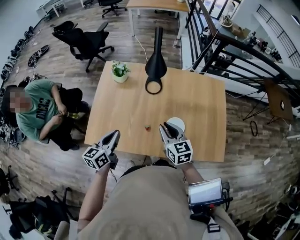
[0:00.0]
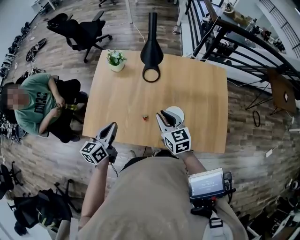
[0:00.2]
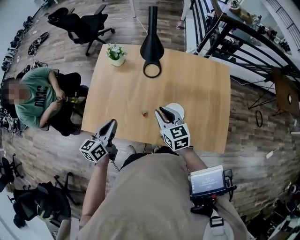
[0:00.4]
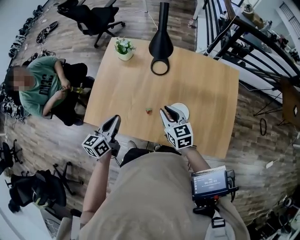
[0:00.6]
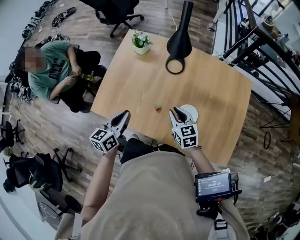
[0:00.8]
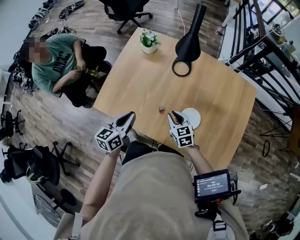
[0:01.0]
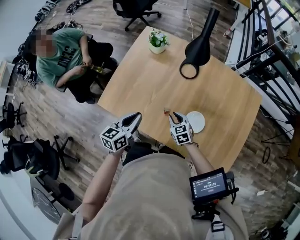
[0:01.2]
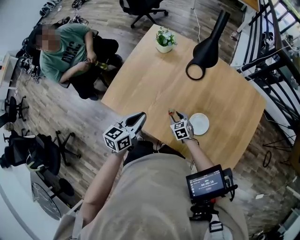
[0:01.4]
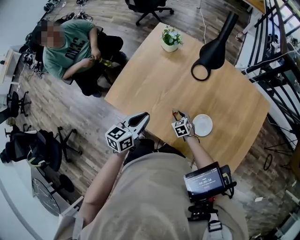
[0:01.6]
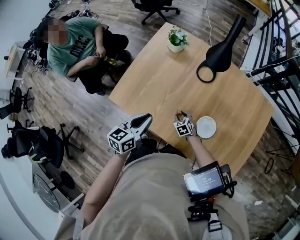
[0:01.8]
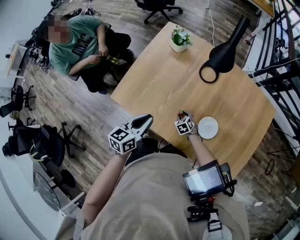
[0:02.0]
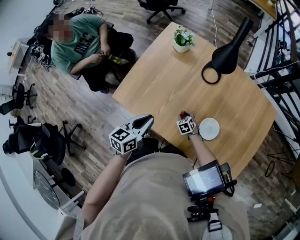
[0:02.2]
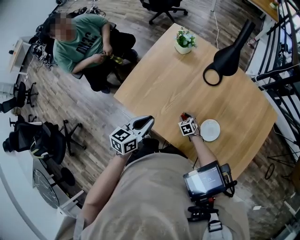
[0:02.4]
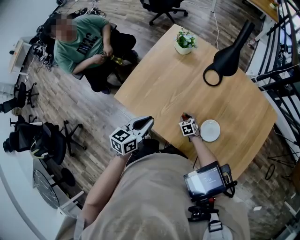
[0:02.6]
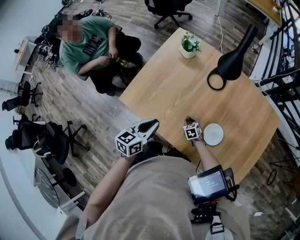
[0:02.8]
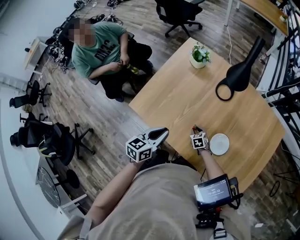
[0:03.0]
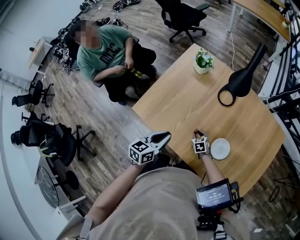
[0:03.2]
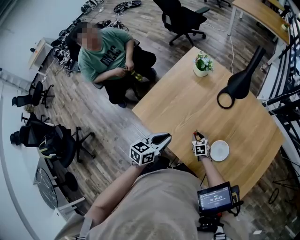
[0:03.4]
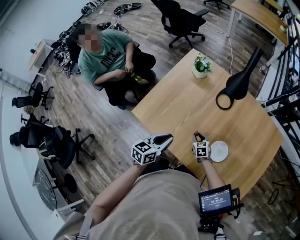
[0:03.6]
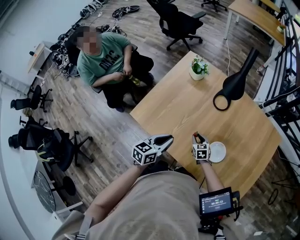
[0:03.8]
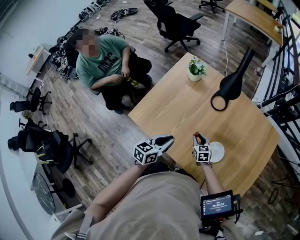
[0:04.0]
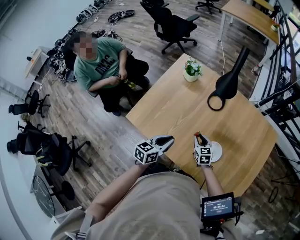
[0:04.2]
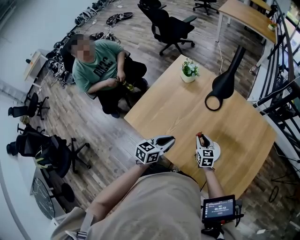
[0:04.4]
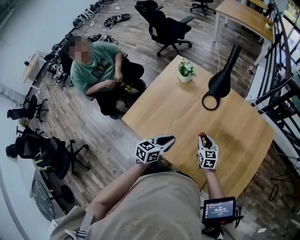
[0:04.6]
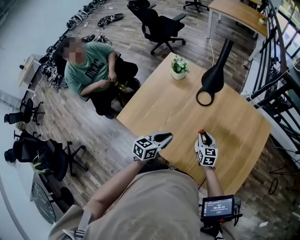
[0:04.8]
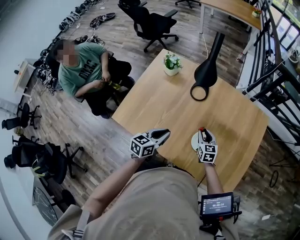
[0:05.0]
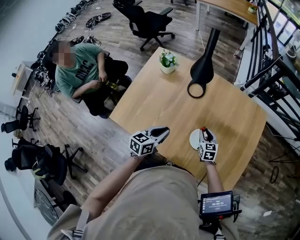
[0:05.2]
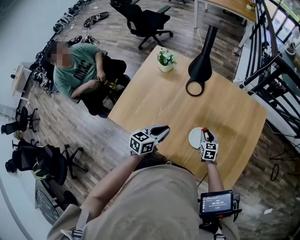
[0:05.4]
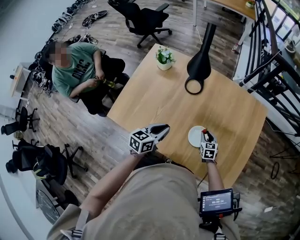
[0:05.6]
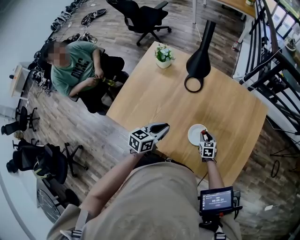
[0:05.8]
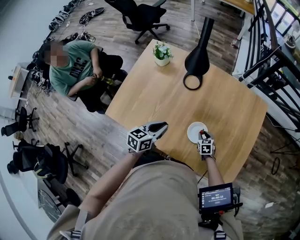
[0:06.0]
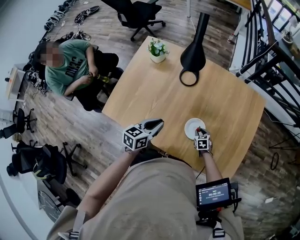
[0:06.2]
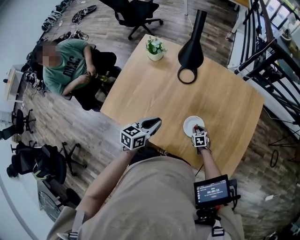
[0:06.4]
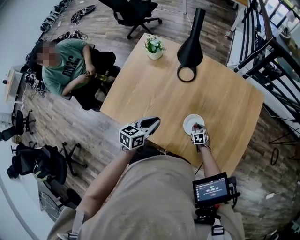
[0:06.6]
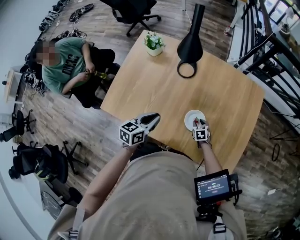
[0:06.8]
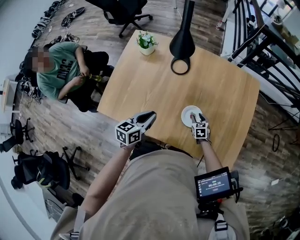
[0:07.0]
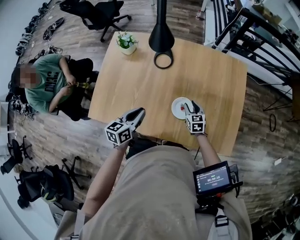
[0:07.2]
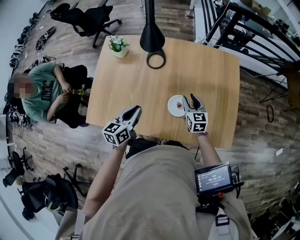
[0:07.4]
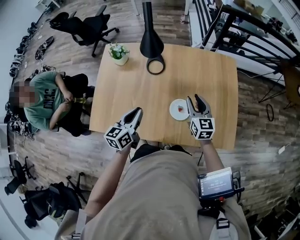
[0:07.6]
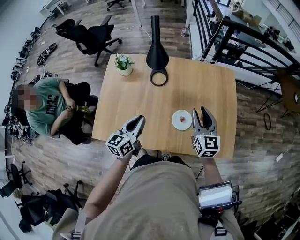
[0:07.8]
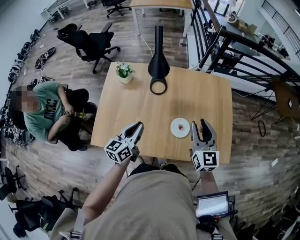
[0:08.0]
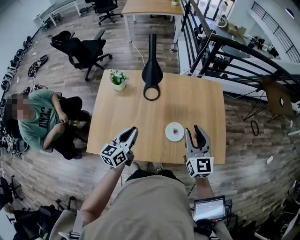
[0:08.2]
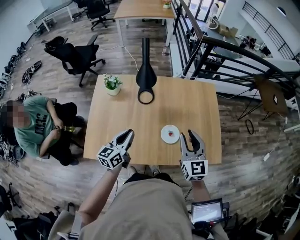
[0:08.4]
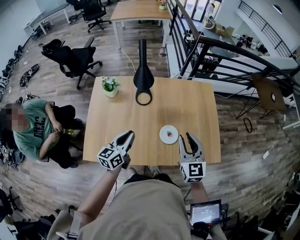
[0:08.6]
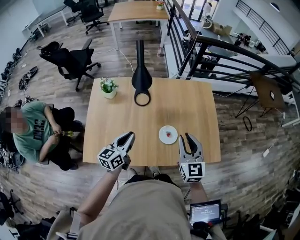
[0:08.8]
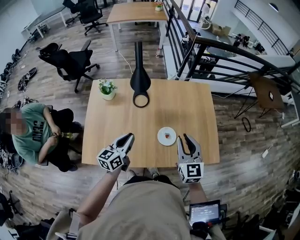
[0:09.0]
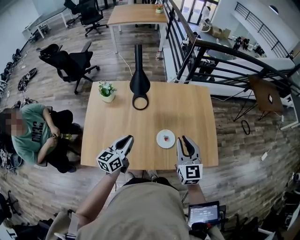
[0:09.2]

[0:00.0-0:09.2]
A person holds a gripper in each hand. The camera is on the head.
0.0 to 1.6 s: The right gripper moves downward, approximately 35 cm, and tilts its fingers about 30 degrees downward. The left gripper moves downward, approximately 5 cm.
1.6 to 3.0 s: The grippers make only small movements.
3.0 to 4.6 s: The left gripper travels to the right by about 10 cm, while the right gripper moves upward and to the right, roughly 20 cm, and turns by approximately 30 degrees.
4.6 to 6.2 s: The right gripper heads downward and to the right, covering some 25 cm, and turns by about 30 degrees. Meanwhile the left gripper ends up roughly 5 cm from where it was.
6.2 to 7.6 s: The right gripper goes approximately 30 cm upward, and angles its fingers upward, by approximately 40 degrees.
7.6 to 9.2 s: The right gripper travels upward and backward by some 20 cm, while the left gripper changes place by about 5 cm.

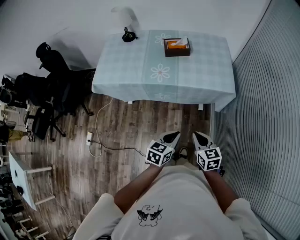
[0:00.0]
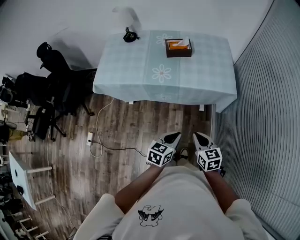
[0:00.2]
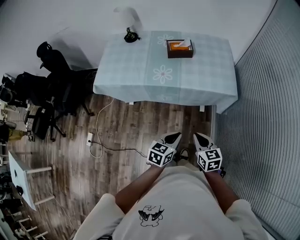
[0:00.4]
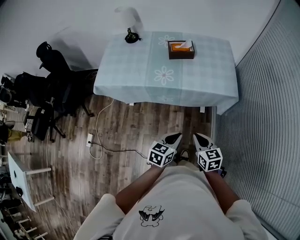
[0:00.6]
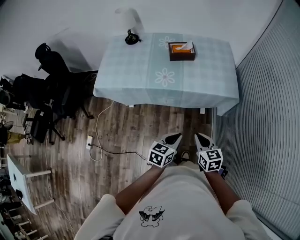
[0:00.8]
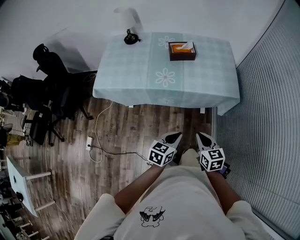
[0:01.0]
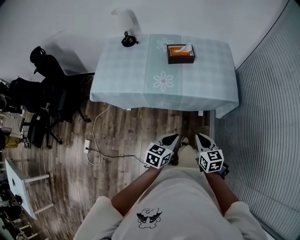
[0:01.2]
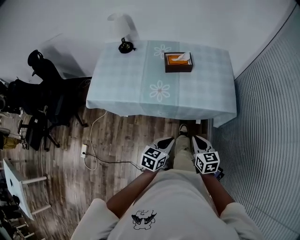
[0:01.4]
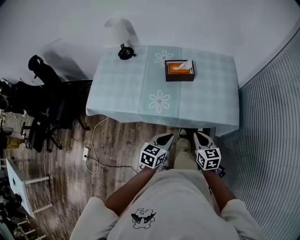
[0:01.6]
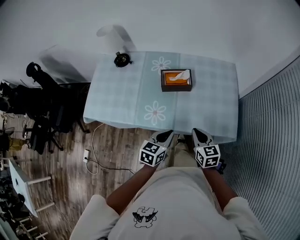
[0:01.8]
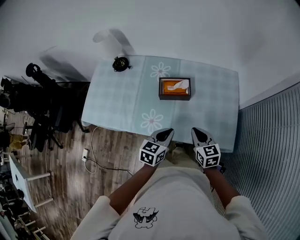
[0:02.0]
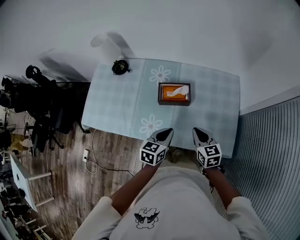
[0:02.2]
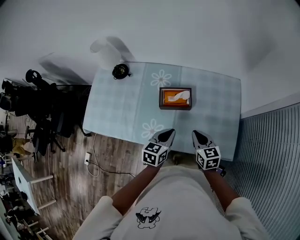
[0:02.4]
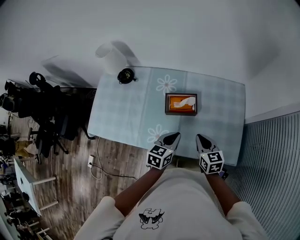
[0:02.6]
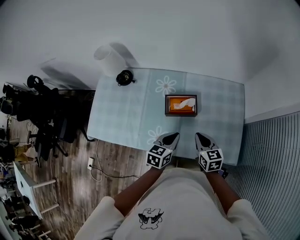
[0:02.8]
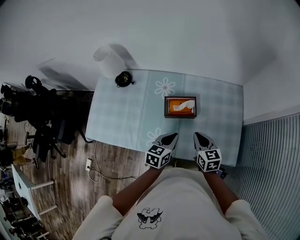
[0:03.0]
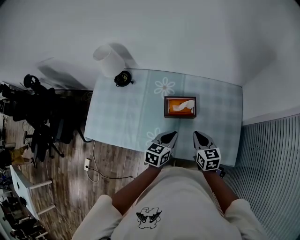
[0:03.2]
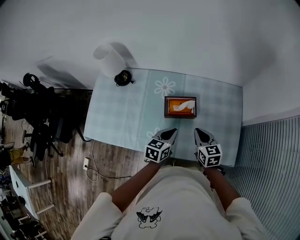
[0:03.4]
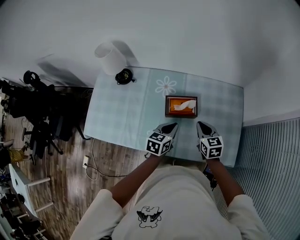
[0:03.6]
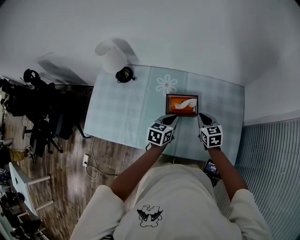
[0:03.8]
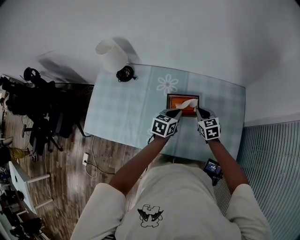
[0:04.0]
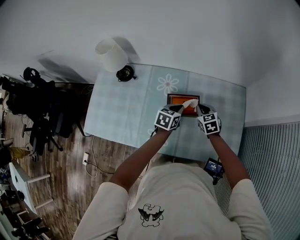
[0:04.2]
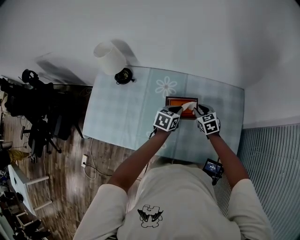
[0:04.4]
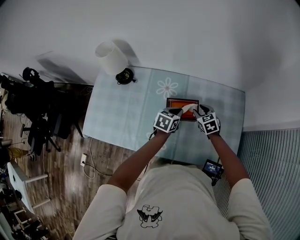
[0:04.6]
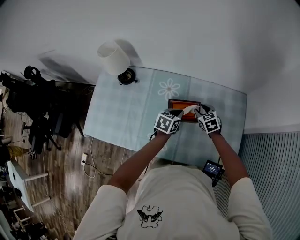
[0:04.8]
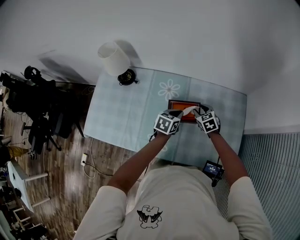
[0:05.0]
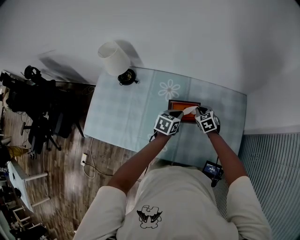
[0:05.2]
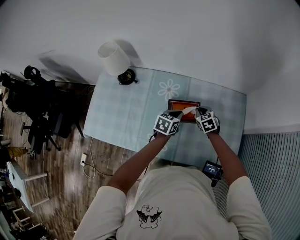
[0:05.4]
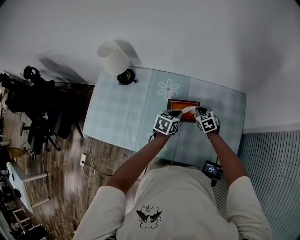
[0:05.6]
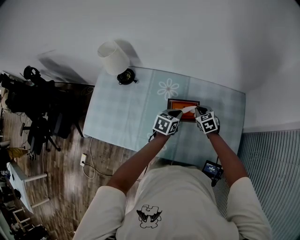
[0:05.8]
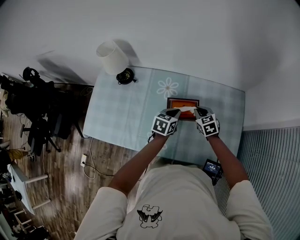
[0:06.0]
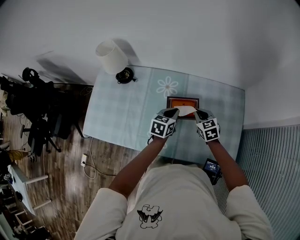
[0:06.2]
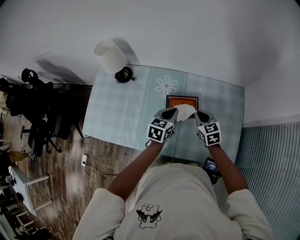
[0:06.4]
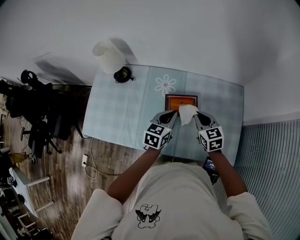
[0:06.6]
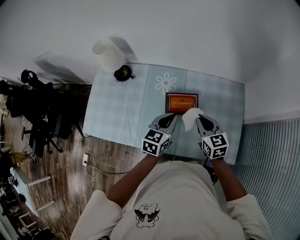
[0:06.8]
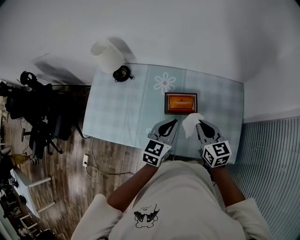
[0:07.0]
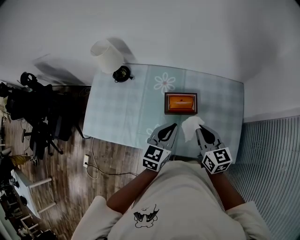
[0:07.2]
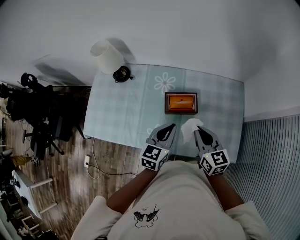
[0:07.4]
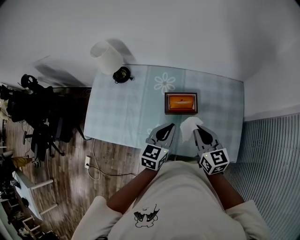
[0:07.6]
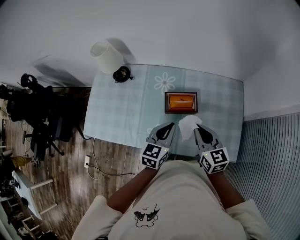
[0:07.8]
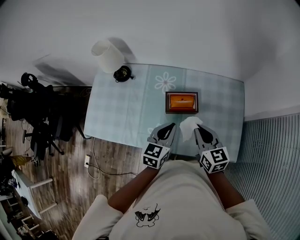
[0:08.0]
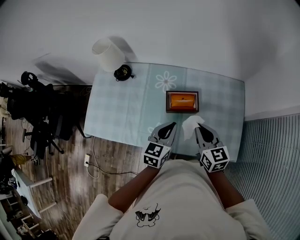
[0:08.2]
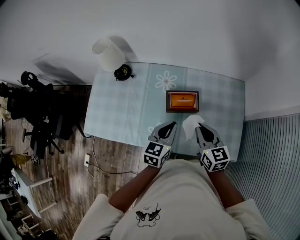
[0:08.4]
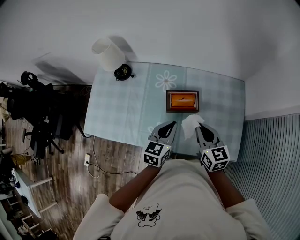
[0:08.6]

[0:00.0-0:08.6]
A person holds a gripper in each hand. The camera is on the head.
0.0 to 1.4 s: The left gripper is displaced forward and to the left by approximately 10 cm, while the right gripper heads forward, covering roughly 10 cm.
1.4 to 2.8 s: Both grippers move forward, approximately 35 cm.
2.8 to 4.4 s: The left gripper shifts some 15 cm forward; the right gripper goes approximately 20 cm forward and downward, changes its angle by roughly 20 degrees, and opens its fingers.
4.4 to 5.8 s: The right gripper closes its fingers.
5.8 to 7.2 s: The grippers both shift upward and backward by roughly 20 cm. The right gripper rotates roughly 30 degrees, while the left gripper rotates some 20 degrees.
7.2 to 8.6 s: There are only small adjustments of the grippers.

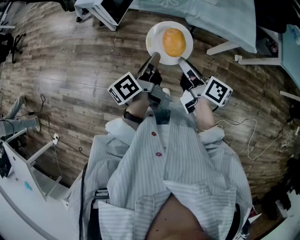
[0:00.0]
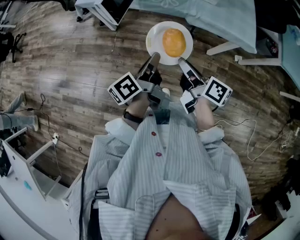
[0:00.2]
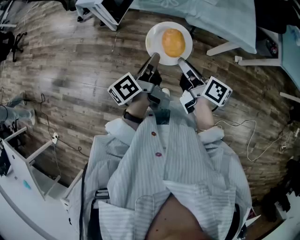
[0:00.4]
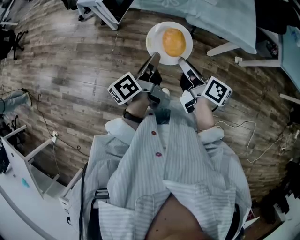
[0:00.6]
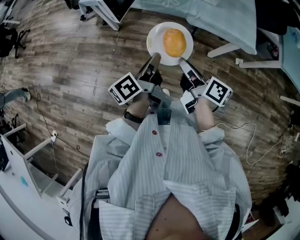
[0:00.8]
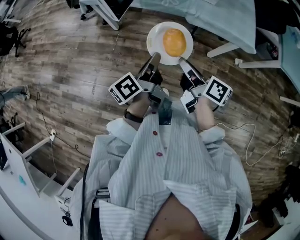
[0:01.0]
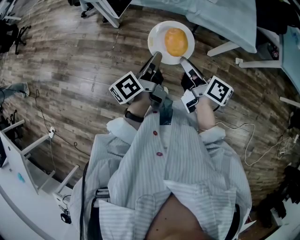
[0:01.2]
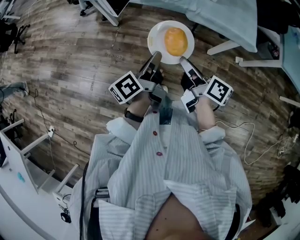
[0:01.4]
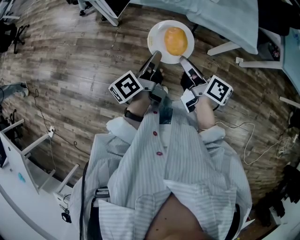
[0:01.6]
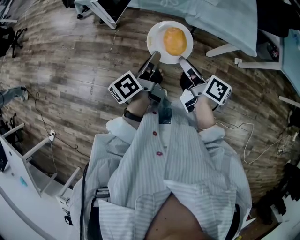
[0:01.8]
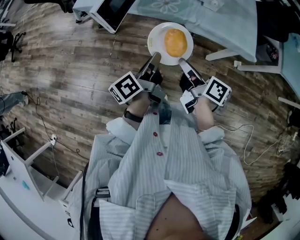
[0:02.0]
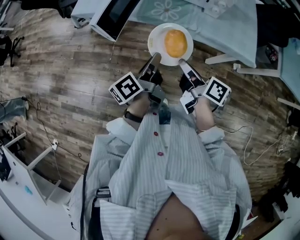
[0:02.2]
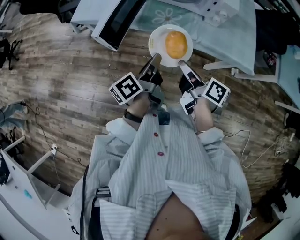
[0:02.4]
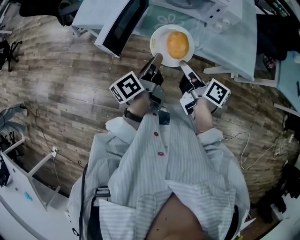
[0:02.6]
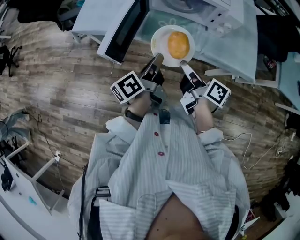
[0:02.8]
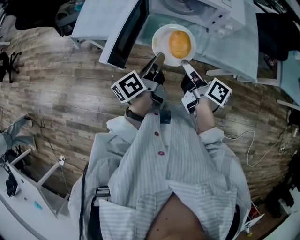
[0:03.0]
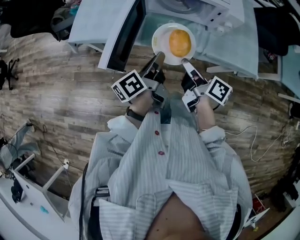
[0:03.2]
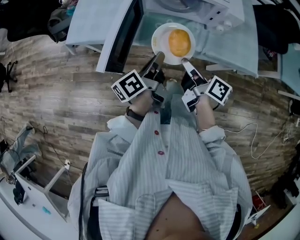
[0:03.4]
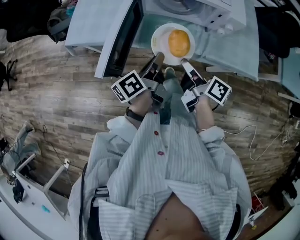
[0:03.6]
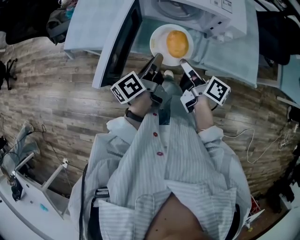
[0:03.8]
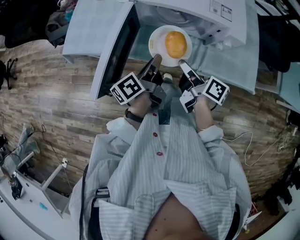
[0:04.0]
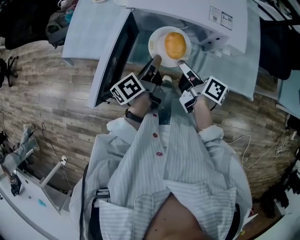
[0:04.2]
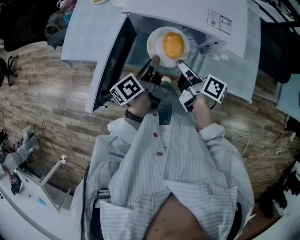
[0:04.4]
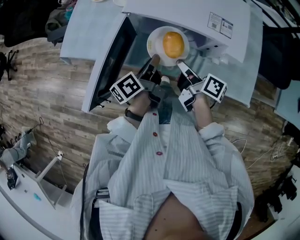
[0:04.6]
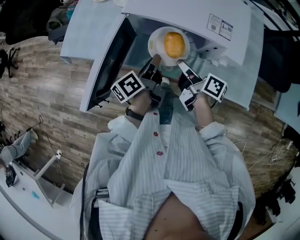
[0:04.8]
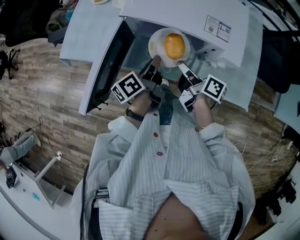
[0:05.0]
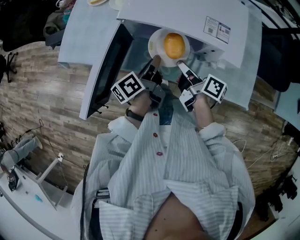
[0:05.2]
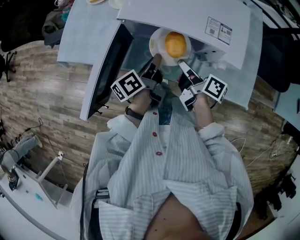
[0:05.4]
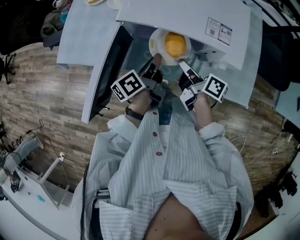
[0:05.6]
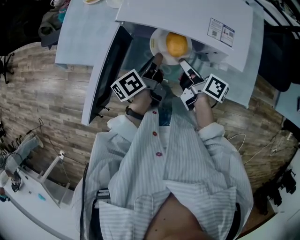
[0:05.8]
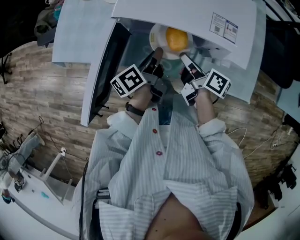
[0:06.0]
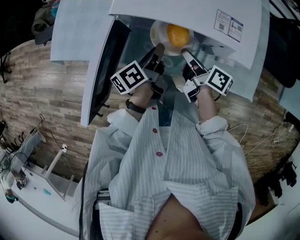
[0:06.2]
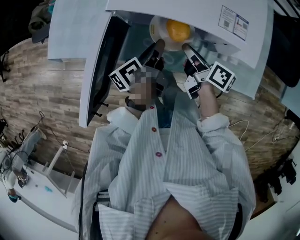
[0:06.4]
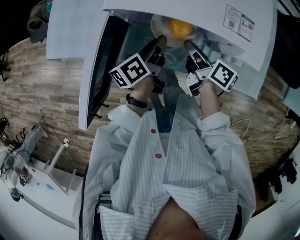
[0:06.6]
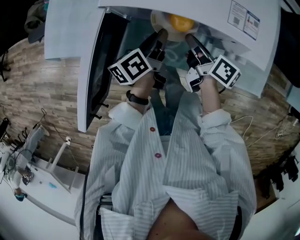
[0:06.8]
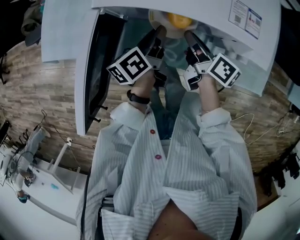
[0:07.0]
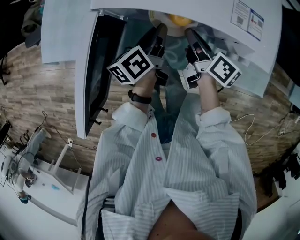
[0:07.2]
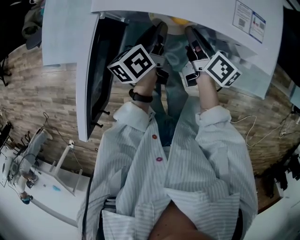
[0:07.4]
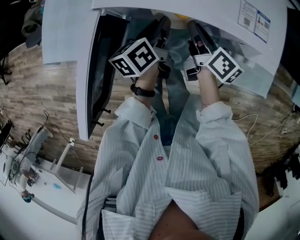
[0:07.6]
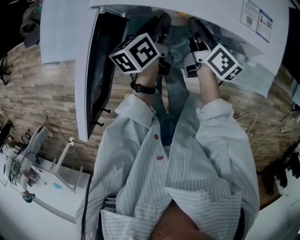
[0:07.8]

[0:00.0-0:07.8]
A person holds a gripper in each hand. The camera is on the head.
0.0 to 1.6 s: The grippers move only a little.
1.6 to 3.2 s: The two grippers go some 25 cm forward.
3.2 to 4.6 s: Both grippers travel together forward, some 15 cm.
4.6 to 6.2 s: The left gripper changes place by roughly 5 cm, while the right gripper moves some 5 cm.
6.2 to 7.8 s: Both grippers move forward, some 10 cm. The left gripper swivels about 20 degrees, while the right gripper turns by approximately 20 degrees.
